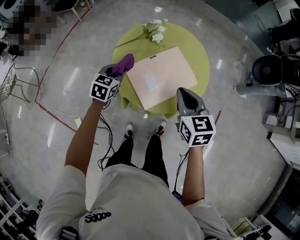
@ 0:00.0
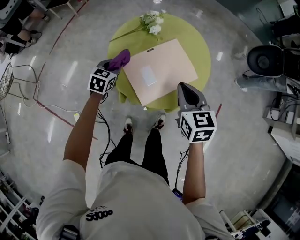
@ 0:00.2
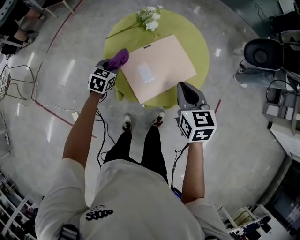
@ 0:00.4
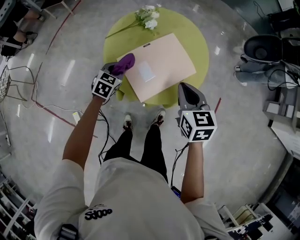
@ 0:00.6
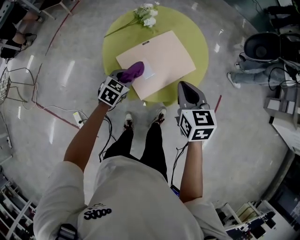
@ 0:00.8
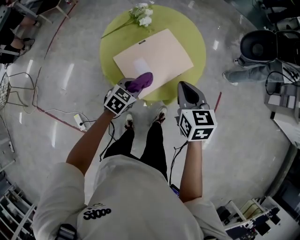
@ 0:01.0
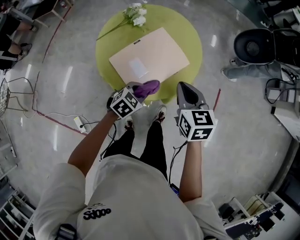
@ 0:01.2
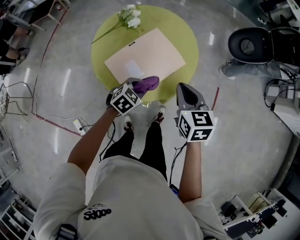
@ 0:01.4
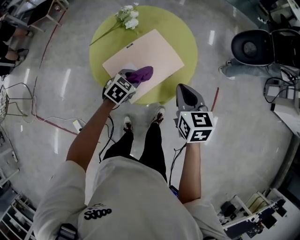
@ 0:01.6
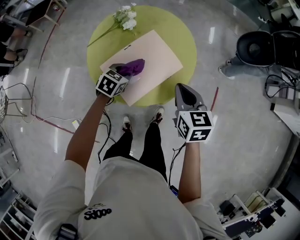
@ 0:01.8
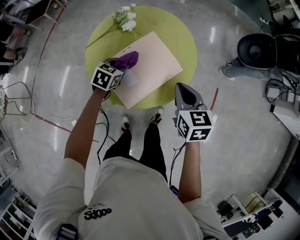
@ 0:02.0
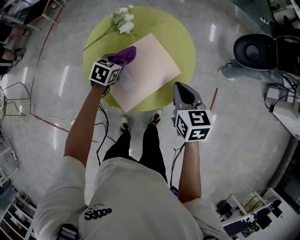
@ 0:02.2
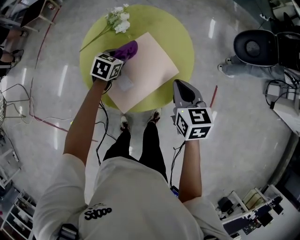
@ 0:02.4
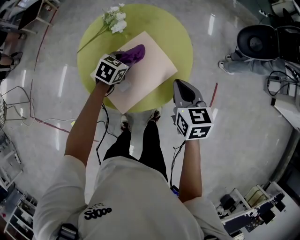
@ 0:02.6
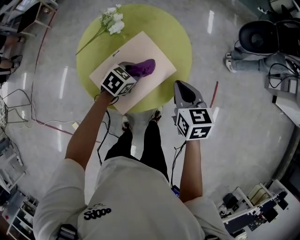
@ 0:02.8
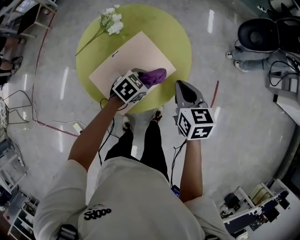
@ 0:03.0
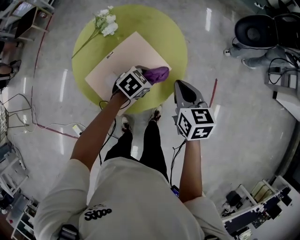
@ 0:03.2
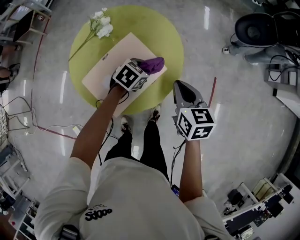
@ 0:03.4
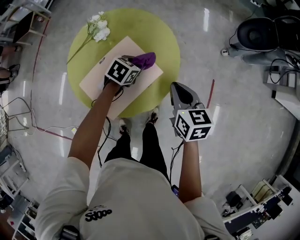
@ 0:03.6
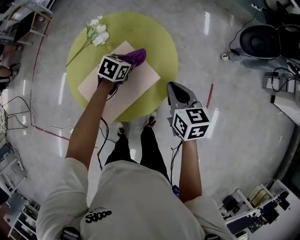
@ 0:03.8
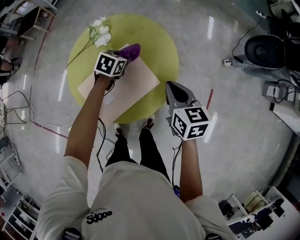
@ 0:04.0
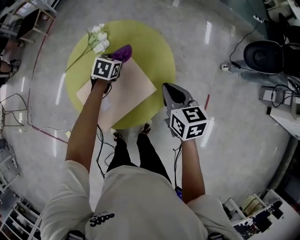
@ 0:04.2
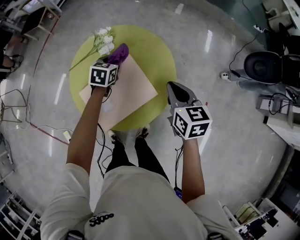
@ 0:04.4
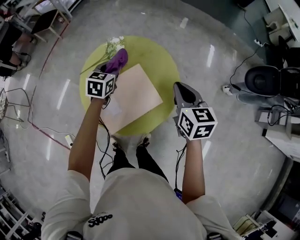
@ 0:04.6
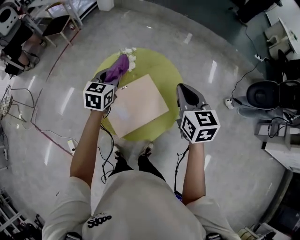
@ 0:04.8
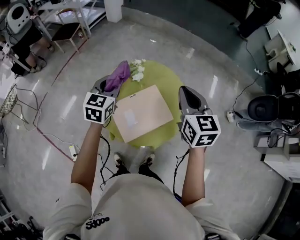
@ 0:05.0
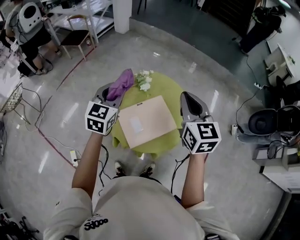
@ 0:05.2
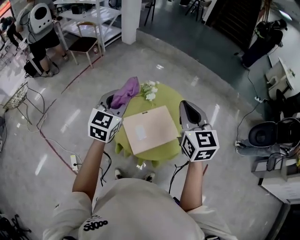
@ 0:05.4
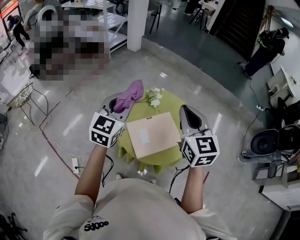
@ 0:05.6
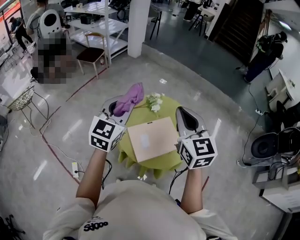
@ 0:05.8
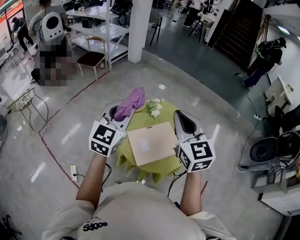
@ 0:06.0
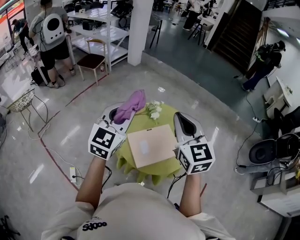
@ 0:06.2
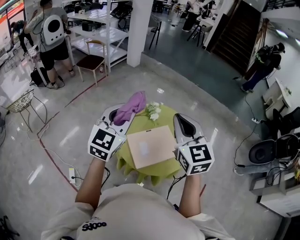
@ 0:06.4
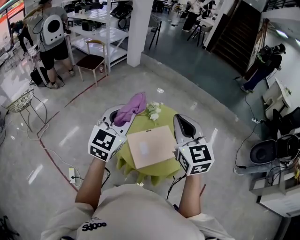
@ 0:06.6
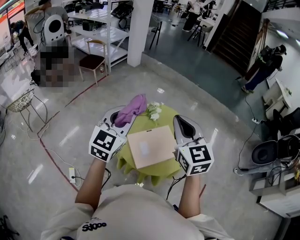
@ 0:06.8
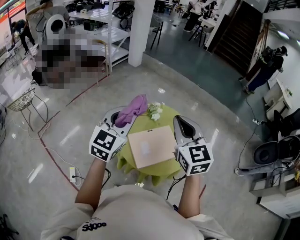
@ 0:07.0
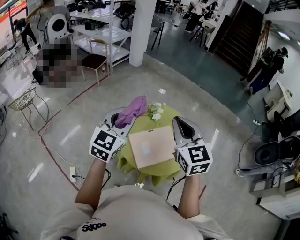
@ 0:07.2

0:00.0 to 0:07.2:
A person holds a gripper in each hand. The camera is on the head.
0:00.0 to 0:01.4: The left gripper travels to the right by roughly 20 cm, and swivels roughly 40 degrees. Meanwhile the right gripper goes about 10 cm to the right.
0:01.4 to 0:02.8: The left gripper is displaced forward by some 15 cm; the right gripper shifts some 10 cm forward.
0:02.8 to 0:04.4: The right gripper changes place by roughly 10 cm; the left gripper ends up roughly 15 cm from where it was, and turns by roughly 40 degrees.
0:04.4 to 0:05.8: The right gripper goes approximately 35 cm upward and to the left, and turns by approximately 40 degrees. The left gripper heads upward, to the left and backward, covering roughly 40 cm, and points its fingers approximately 40 degrees further upward.
0:05.8 to 0:07.2: The grippers stay close to where they were, moving slightly.

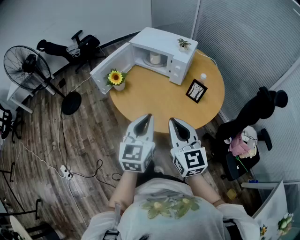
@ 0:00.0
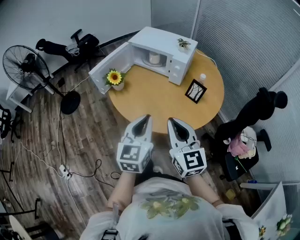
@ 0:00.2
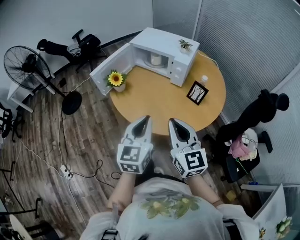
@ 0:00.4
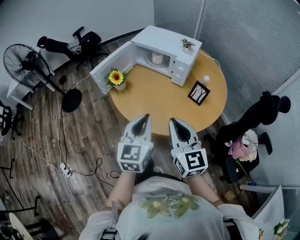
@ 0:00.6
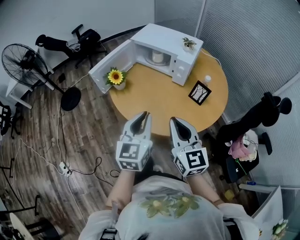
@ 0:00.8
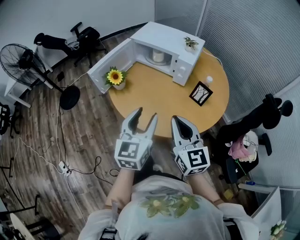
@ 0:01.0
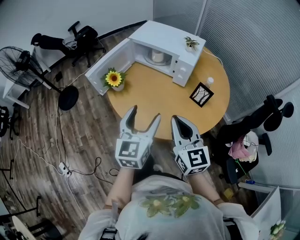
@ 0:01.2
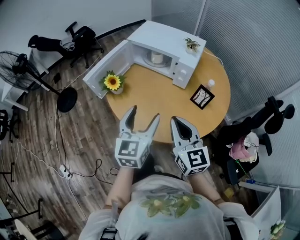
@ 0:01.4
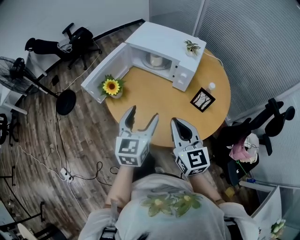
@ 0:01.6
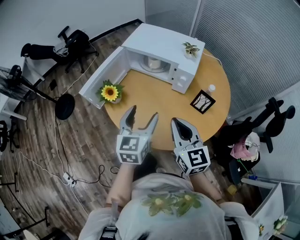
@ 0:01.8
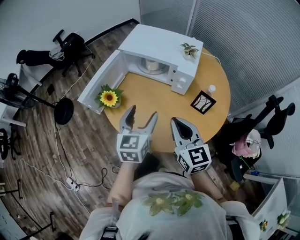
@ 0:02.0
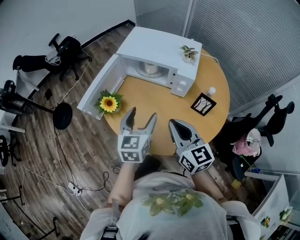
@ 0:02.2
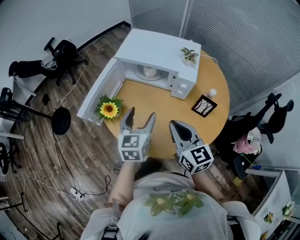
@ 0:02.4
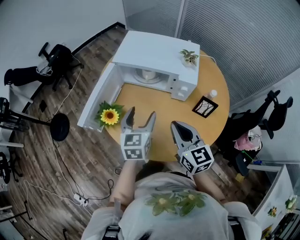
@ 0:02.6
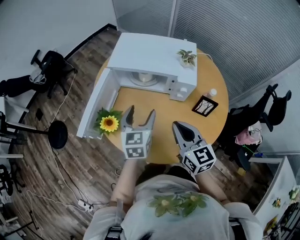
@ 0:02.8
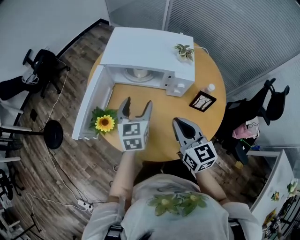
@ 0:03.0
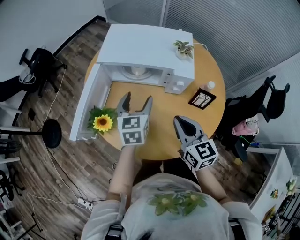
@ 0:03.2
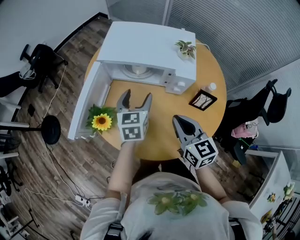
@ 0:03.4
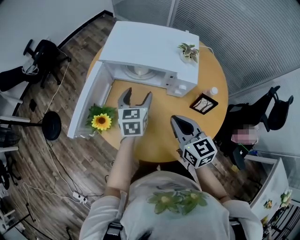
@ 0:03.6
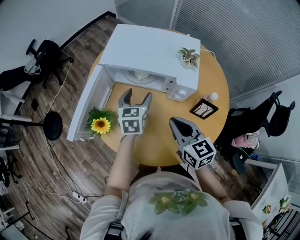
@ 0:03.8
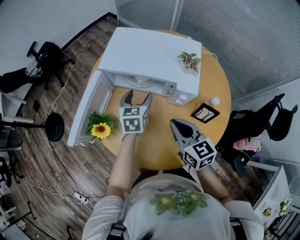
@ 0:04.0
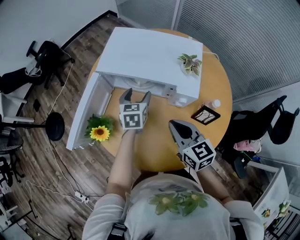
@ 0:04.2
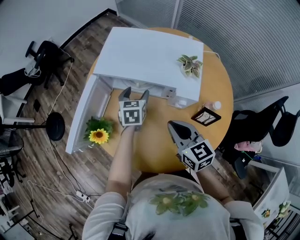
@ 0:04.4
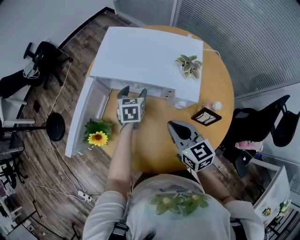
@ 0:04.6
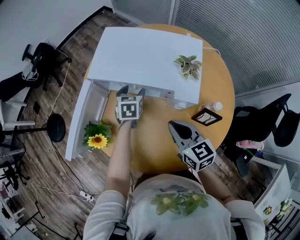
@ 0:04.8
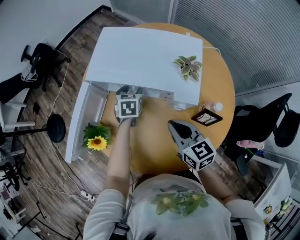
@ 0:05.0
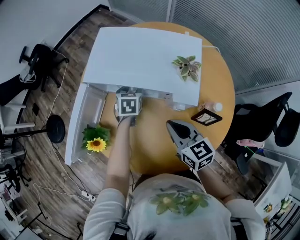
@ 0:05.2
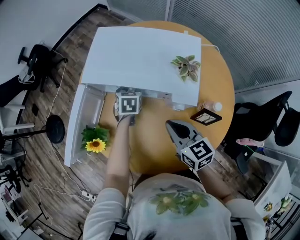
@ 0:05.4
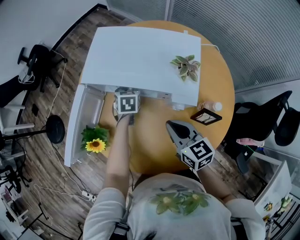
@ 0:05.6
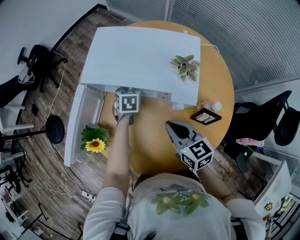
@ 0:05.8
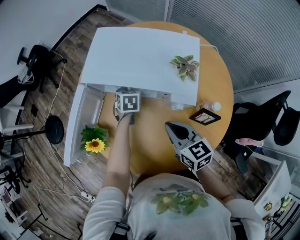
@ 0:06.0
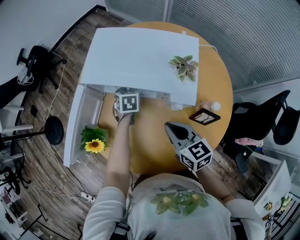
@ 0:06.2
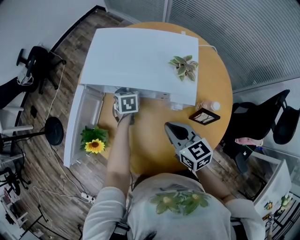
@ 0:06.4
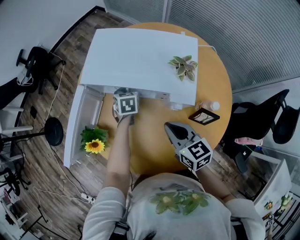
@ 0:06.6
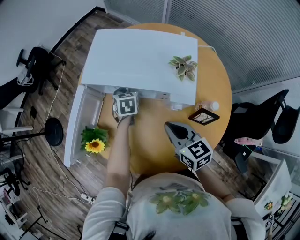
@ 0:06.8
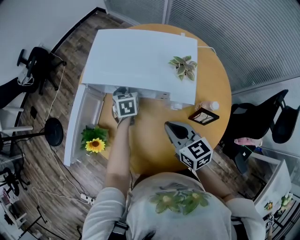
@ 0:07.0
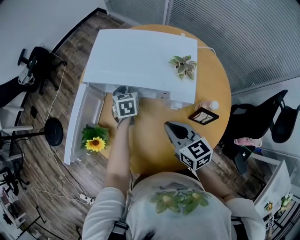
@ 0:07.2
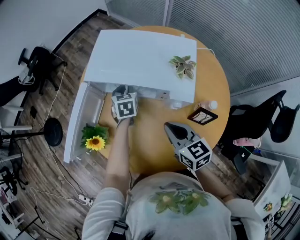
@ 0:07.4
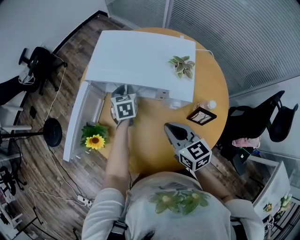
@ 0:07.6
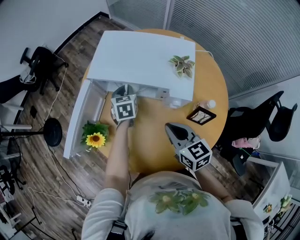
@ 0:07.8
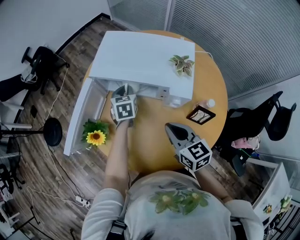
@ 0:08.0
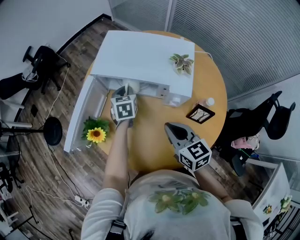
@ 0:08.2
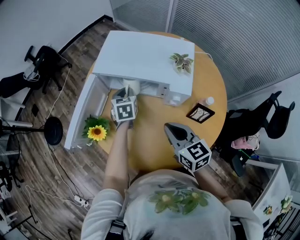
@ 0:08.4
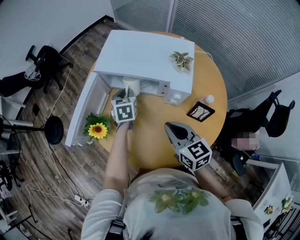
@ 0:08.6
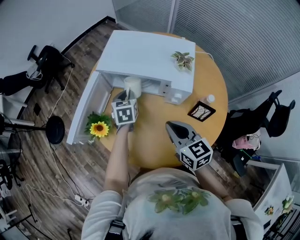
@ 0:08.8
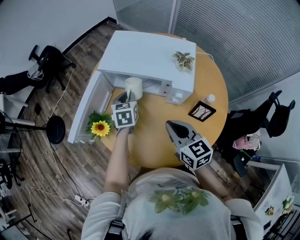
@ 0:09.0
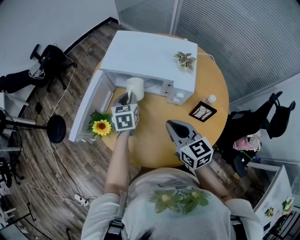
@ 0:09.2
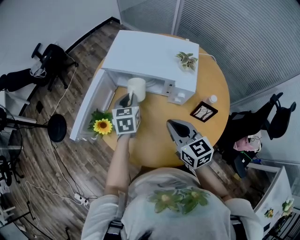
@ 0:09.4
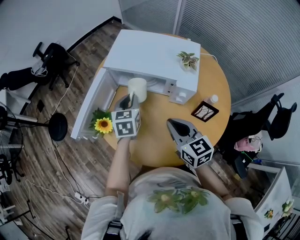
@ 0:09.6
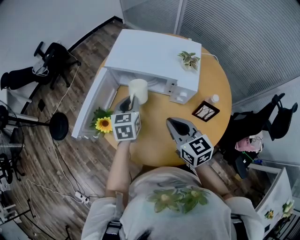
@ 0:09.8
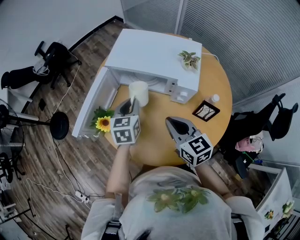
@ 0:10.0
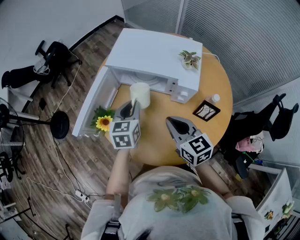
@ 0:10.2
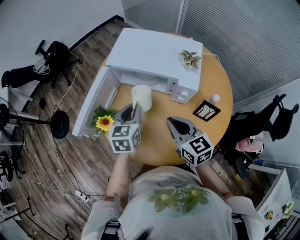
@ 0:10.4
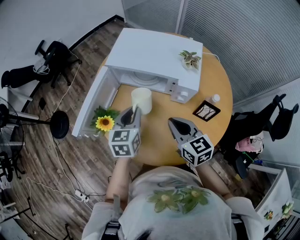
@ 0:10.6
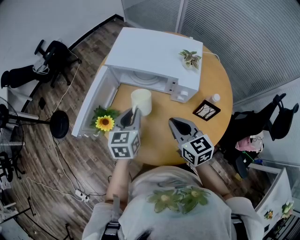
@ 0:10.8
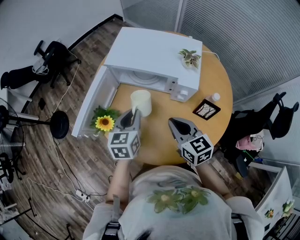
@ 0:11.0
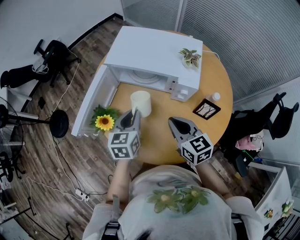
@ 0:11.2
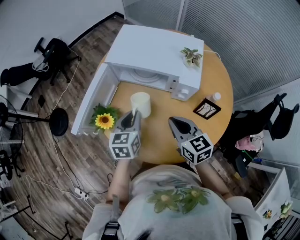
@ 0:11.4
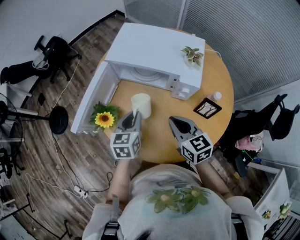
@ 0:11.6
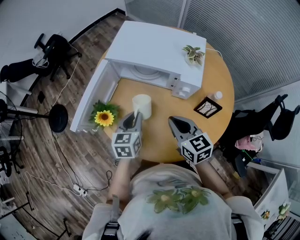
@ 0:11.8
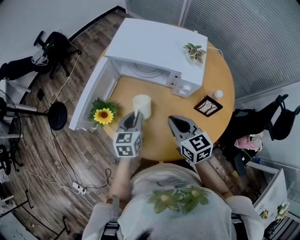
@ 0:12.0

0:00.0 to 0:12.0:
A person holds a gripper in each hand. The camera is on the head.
0:00.0 to 0:01.6: Both grippers travel together forward, some 15 cm. The left gripper opens its fingers.
0:01.6 to 0:03.0: The left gripper shifts roughly 20 cm forward, while the right gripper moves forward, roughly 15 cm.
0:03.0 to 0:04.4: The right gripper moves forward, roughly 10 cm, while the left gripper heads forward and downward, covering about 20 cm.
0:04.4 to 0:06.0: The left gripper heads downward and forward, covering roughly 10 cm, and closes its fingers.
0:06.0 to 0:07.6: The left gripper shifts some 5 cm upward.
0:07.6 to 0:09.0: The right gripper moves roughly 5 cm. The left gripper is displaced backward by about 10 cm.
0:09.0 to 0:10.4: The left gripper travels backward and upward by some 10 cm.
0:10.4 to 0:12.0: The left gripper shifts about 5 cm downward.

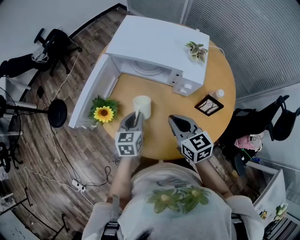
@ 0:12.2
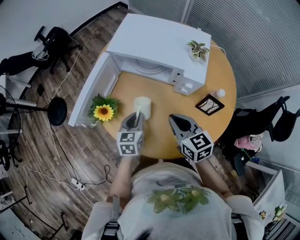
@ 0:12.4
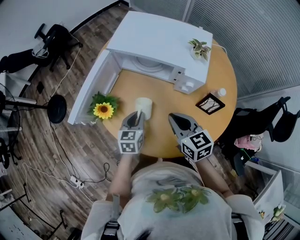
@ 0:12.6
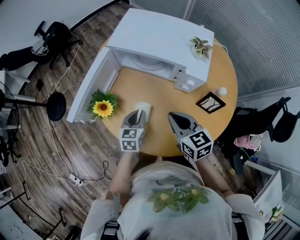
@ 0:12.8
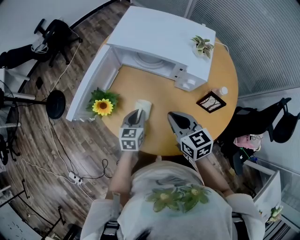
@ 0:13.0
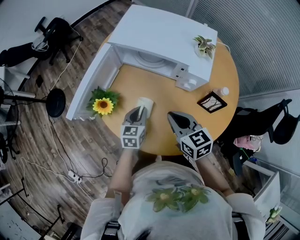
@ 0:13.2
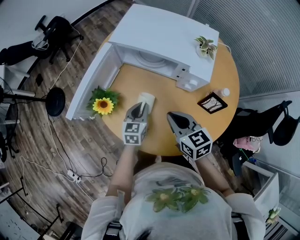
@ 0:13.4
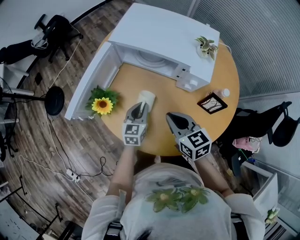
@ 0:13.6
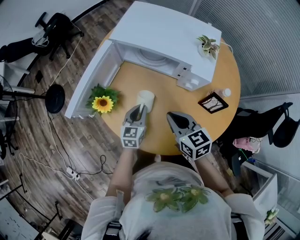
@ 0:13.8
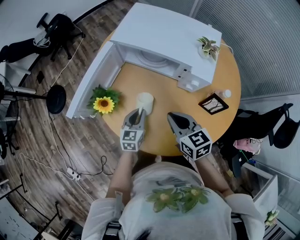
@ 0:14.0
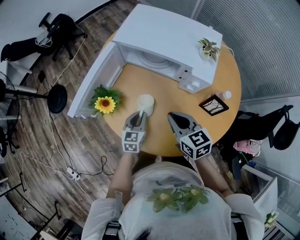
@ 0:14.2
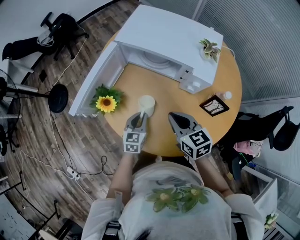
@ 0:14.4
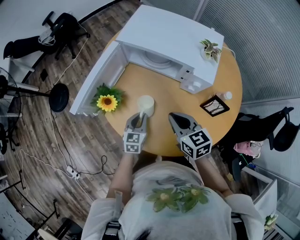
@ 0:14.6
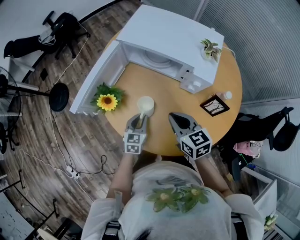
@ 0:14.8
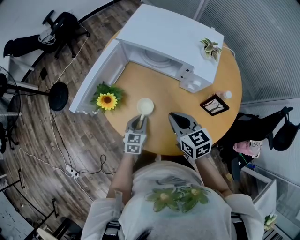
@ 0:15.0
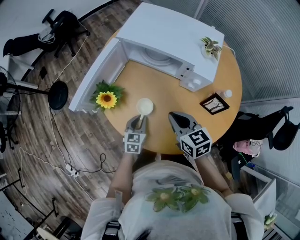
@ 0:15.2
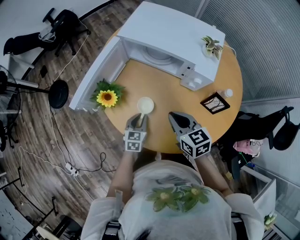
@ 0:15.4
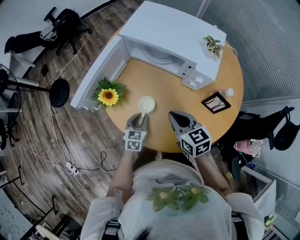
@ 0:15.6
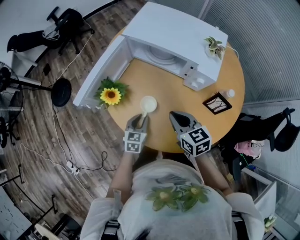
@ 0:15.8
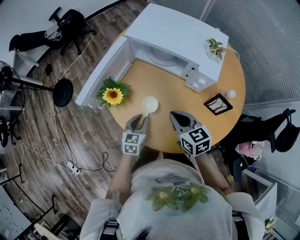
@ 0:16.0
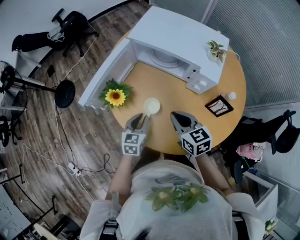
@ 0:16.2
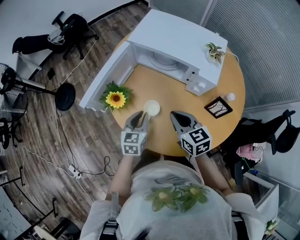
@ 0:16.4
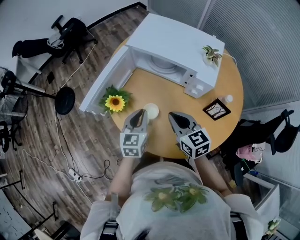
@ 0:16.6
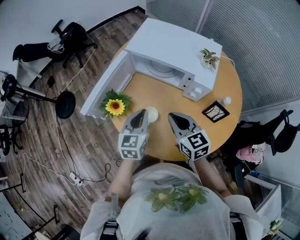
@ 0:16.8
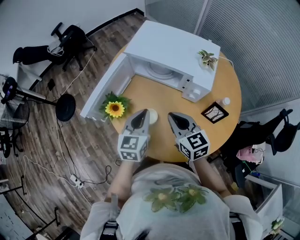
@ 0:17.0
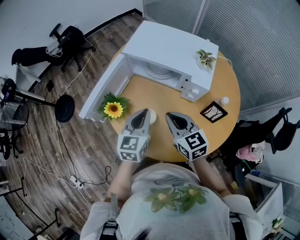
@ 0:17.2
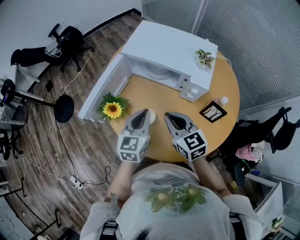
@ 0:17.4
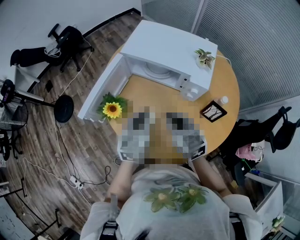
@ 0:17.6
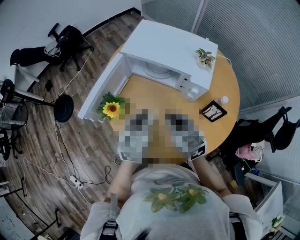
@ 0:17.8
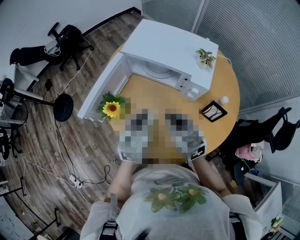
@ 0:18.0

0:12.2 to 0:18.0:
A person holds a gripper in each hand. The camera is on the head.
0:12.2 to 0:13.6: The left gripper is displaced downward by approximately 5 cm.
0:13.6 to 0:15.0: The left gripper shifts some 5 cm backward.
0:15.0 to 0:16.6: The left gripper is displaced upward by roughly 15 cm.
0:16.6 to 0:18.0: The left gripper goes roughly 5 cm upward.
